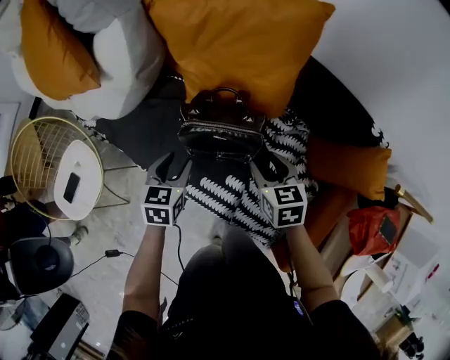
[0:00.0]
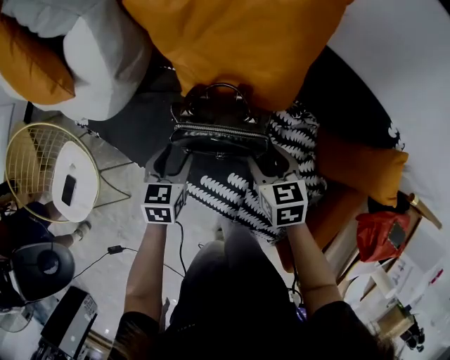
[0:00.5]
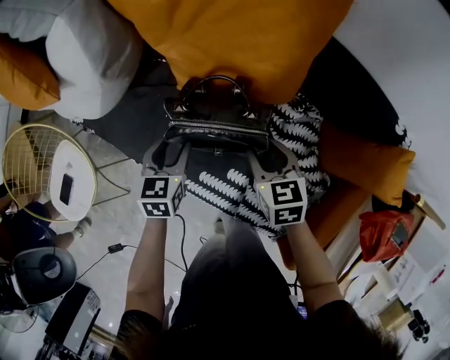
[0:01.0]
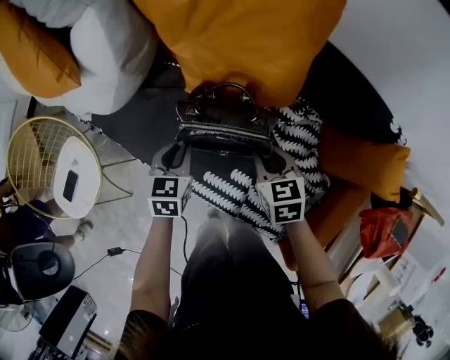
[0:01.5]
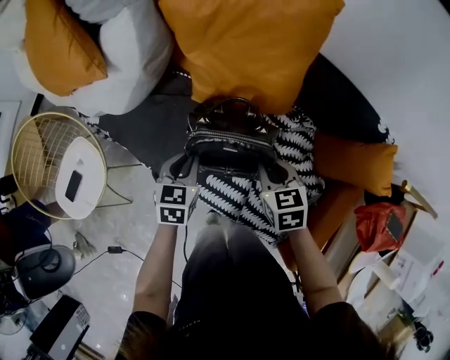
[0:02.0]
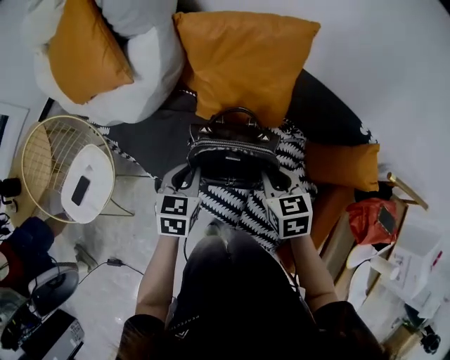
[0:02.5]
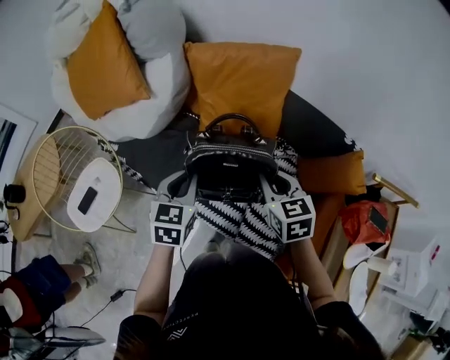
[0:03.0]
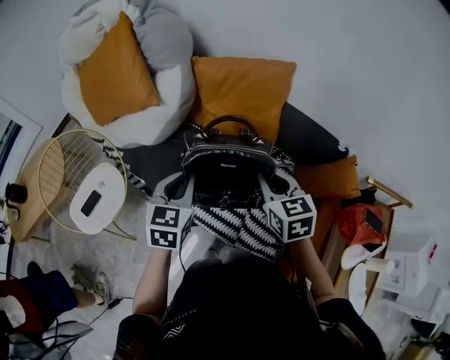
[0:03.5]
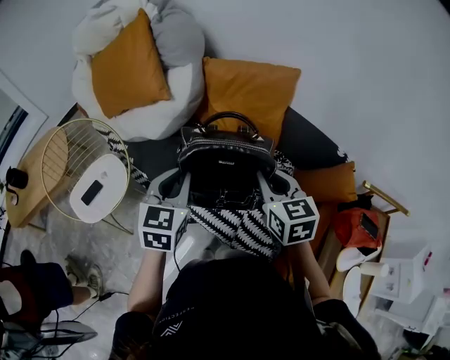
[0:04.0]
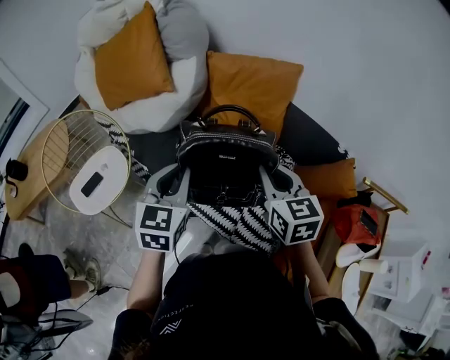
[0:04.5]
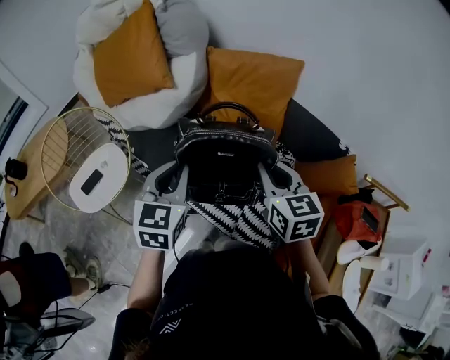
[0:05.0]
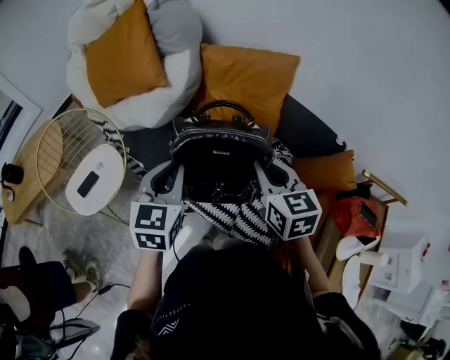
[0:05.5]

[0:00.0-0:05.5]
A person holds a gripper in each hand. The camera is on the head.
0:00.0 to 0:02.0: The right gripper closes. Meanwhile the left gripper closes up.
0:02.0 to 0:03.5: Both grippers move upward, about 20 cm.
0:03.5 to 0:05.5: The grippers both shift upward by roughly 5 cm.

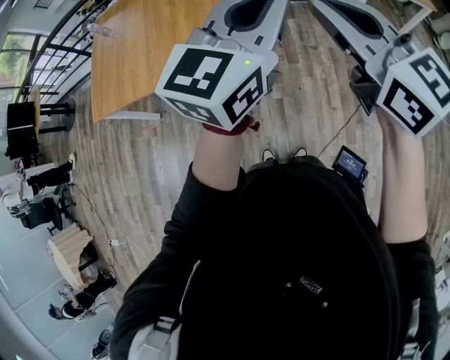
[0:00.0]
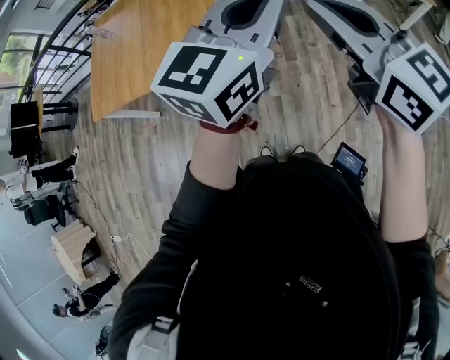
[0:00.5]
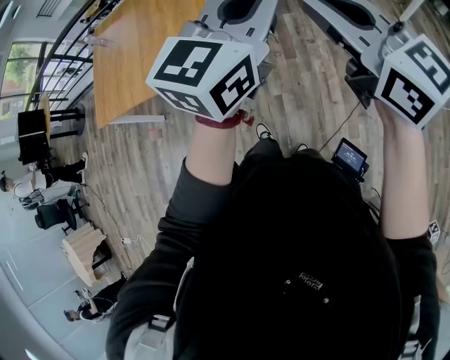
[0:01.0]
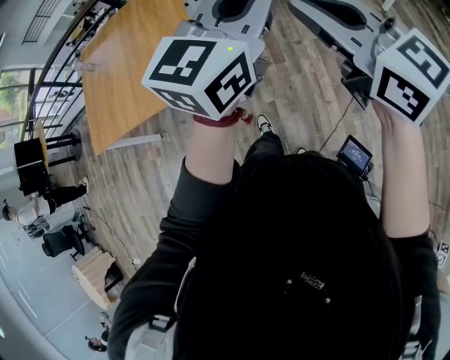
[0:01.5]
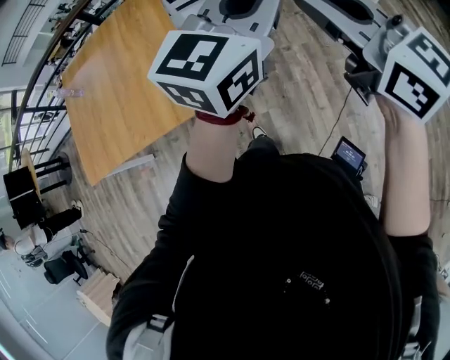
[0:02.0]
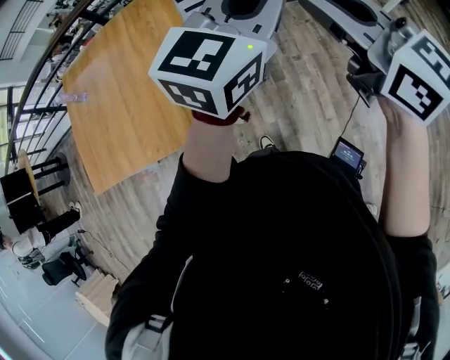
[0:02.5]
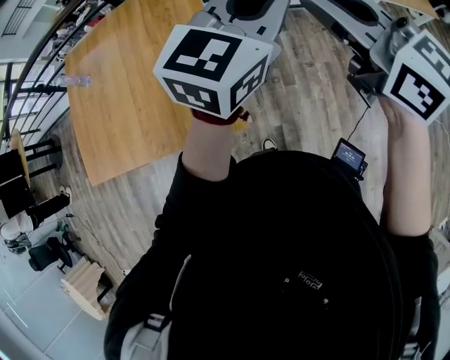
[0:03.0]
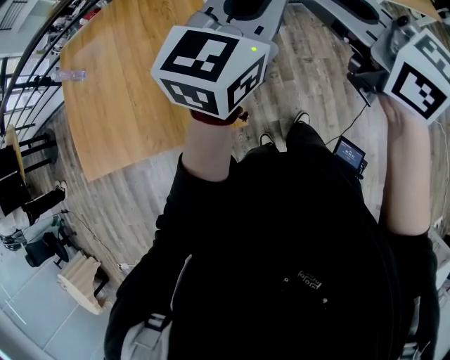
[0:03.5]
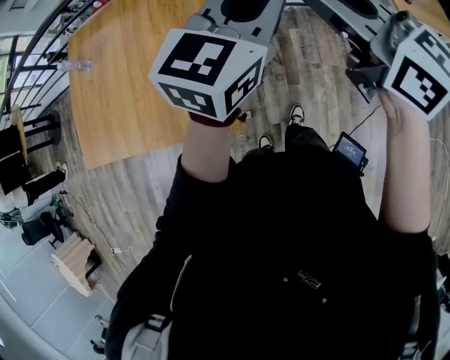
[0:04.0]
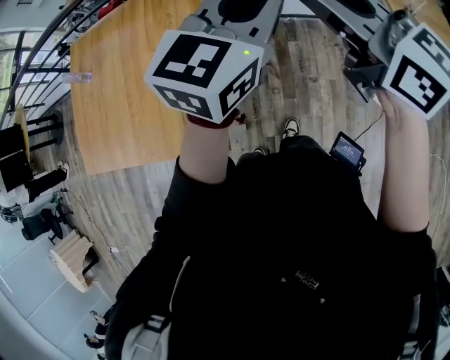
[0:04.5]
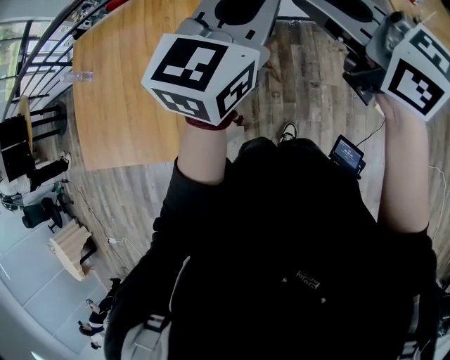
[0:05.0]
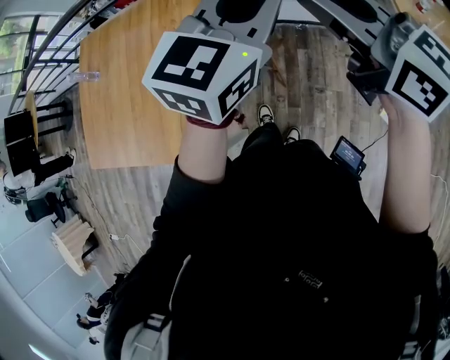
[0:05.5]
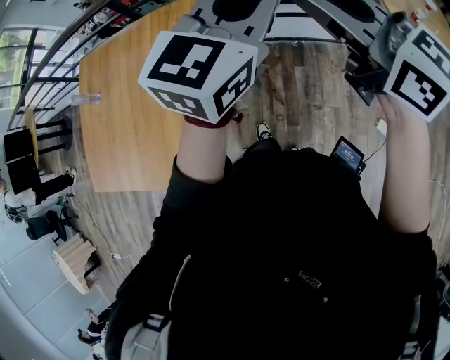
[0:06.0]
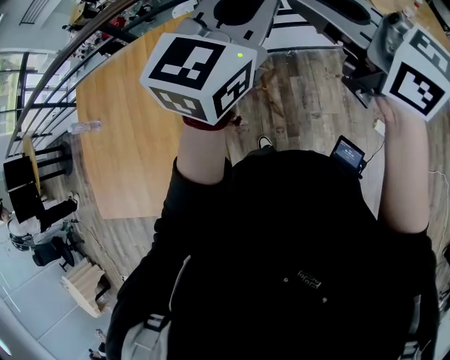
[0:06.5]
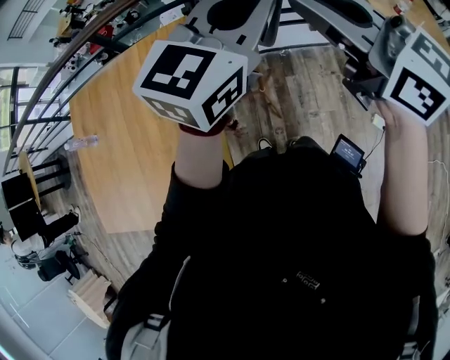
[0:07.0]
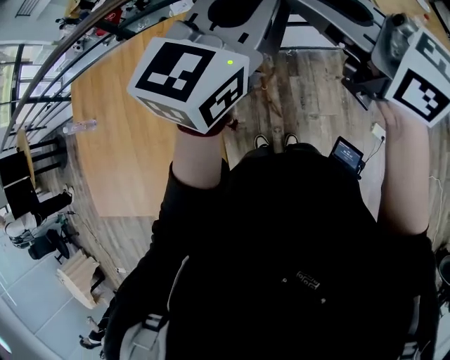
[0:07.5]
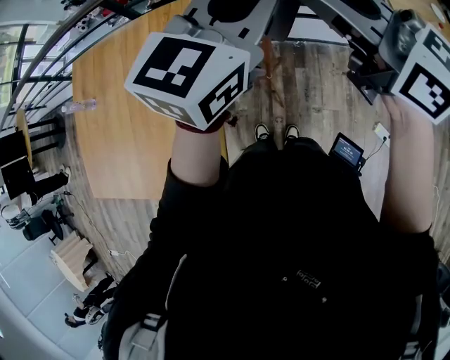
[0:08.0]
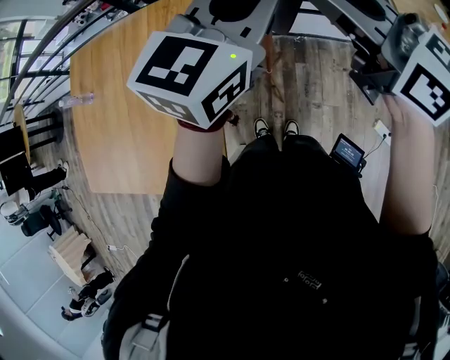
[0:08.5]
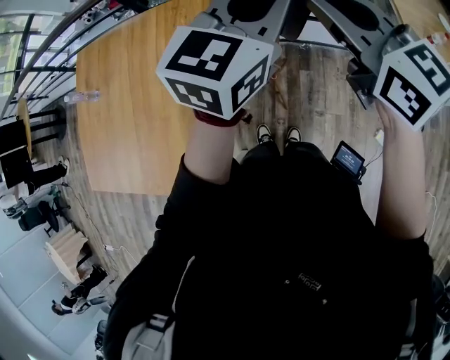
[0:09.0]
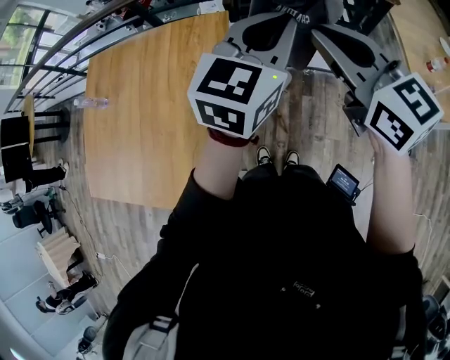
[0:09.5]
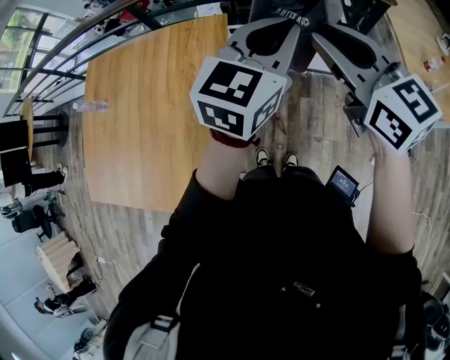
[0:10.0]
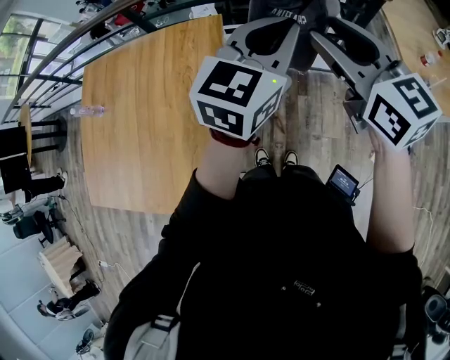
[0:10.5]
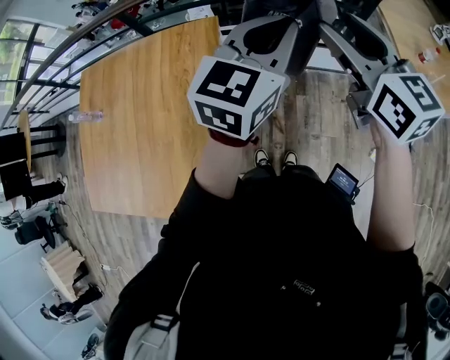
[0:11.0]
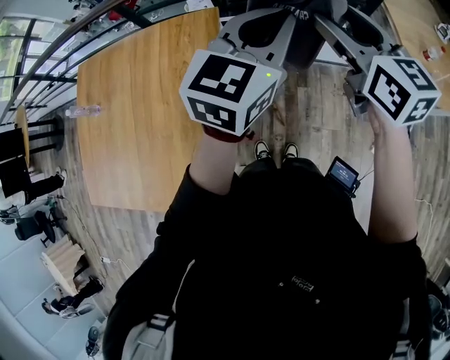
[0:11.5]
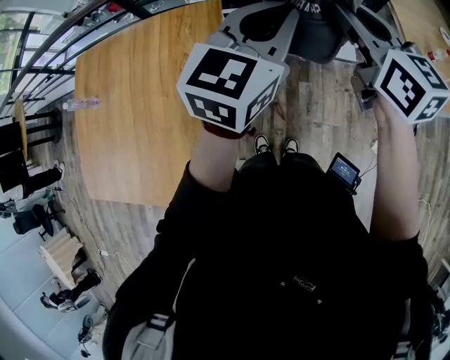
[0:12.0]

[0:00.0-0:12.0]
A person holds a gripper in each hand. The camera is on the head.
0:00.0 to 0:02.0: Both grippers travel together forward and to the right, some 15 cm.
0:02.0 to 0:04.0: The grippers both shift forward and to the left by about 25 cm.
0:04.0 to 0:06.0: The two grippers go roughly 20 cm forward and to the right.
0:06.0 to 0:08.0: Both grippers move forward, roughly 5 cm.
0:08.0 to 0:10.0: The grippers make only small movements.
0:10.0 to 0:12.0: The right gripper is displaced forward by roughly 5 cm, and opens, then closes once more.

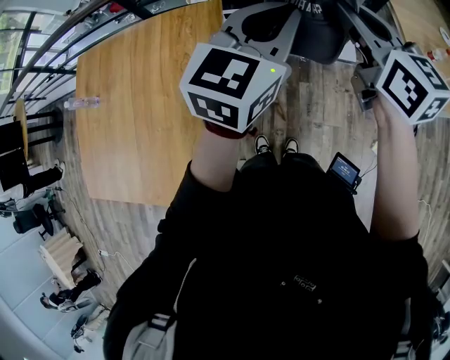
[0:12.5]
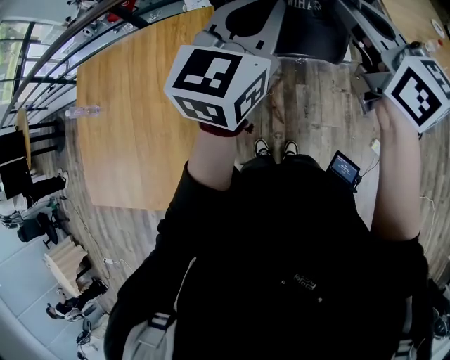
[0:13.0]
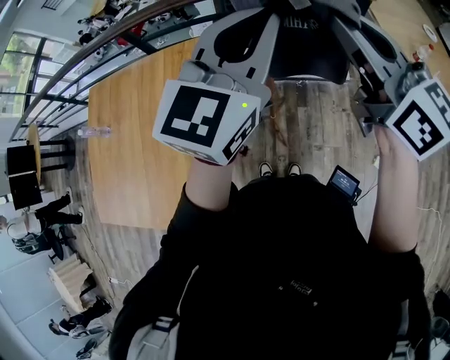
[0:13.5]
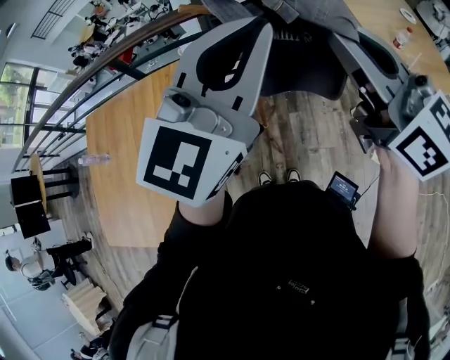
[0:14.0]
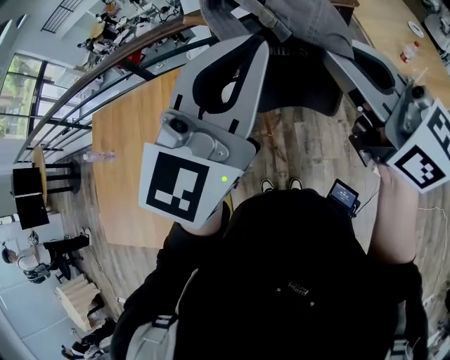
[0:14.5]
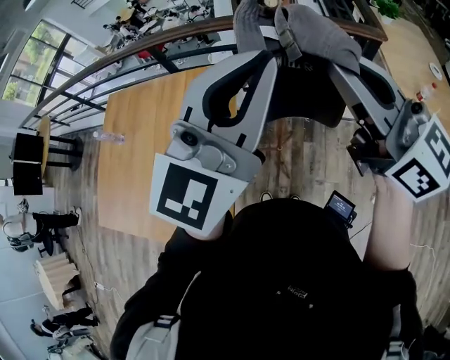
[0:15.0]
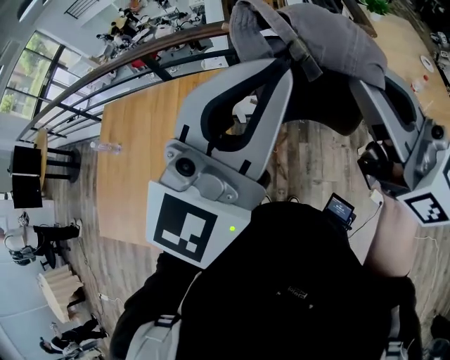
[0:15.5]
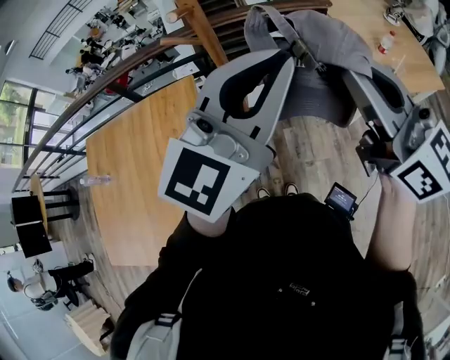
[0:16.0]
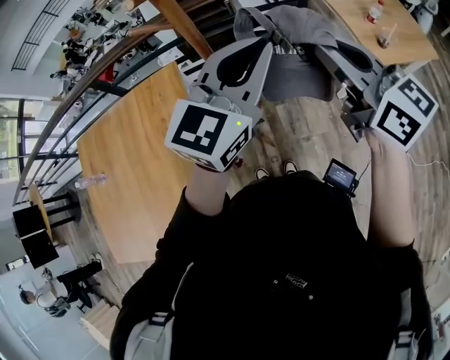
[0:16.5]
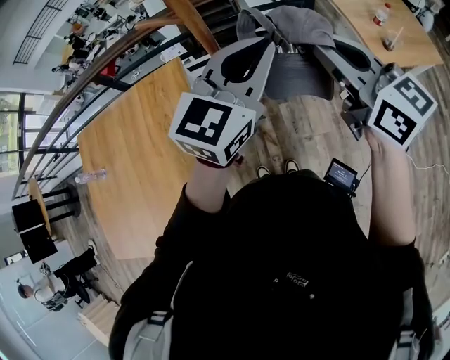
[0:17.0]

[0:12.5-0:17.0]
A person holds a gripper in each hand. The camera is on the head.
0:12.5 to 0:14.5: Both grippers move upward and backward, roughly 15 cm. The left gripper rotates approximately 20 degrees.
0:14.5 to 0:17.0: The grippers both shift downward and to the right by some 10 cm.

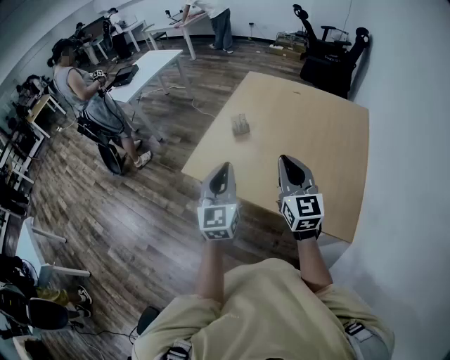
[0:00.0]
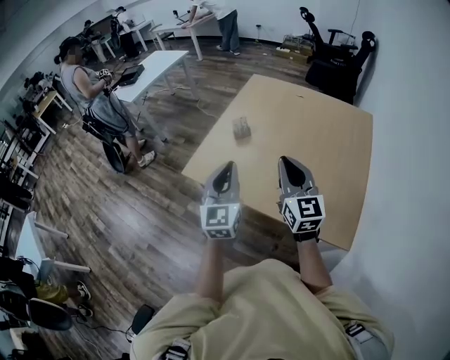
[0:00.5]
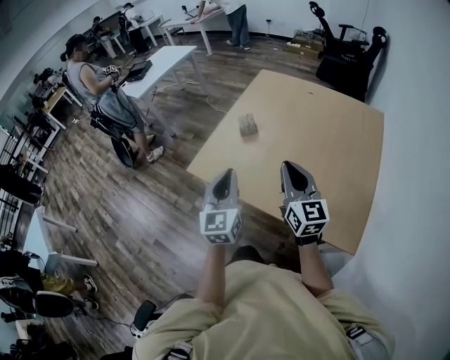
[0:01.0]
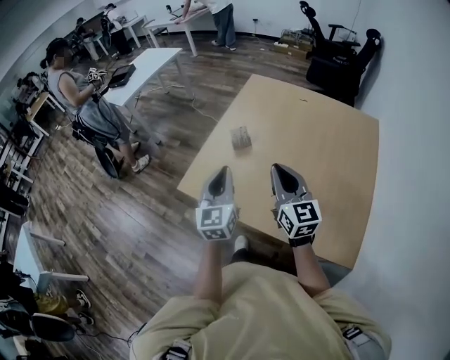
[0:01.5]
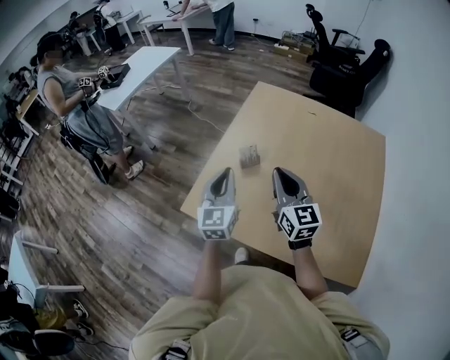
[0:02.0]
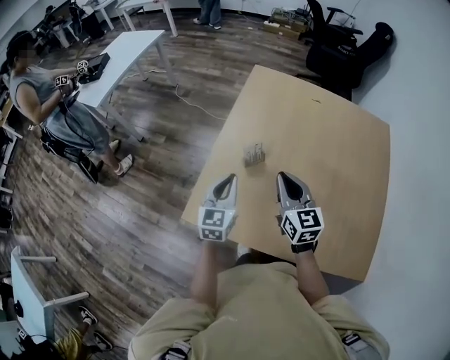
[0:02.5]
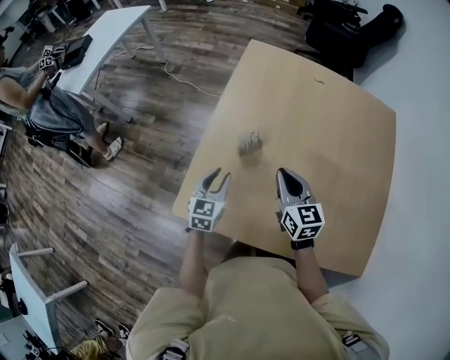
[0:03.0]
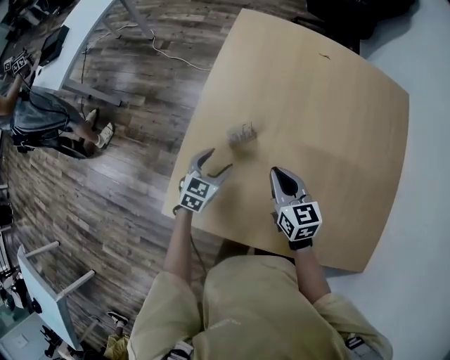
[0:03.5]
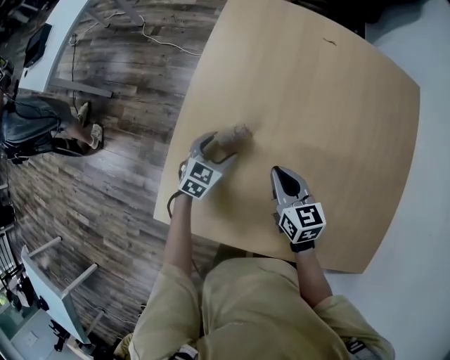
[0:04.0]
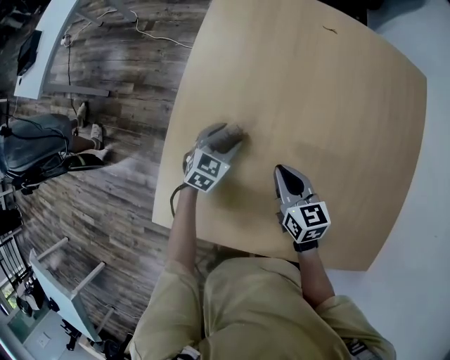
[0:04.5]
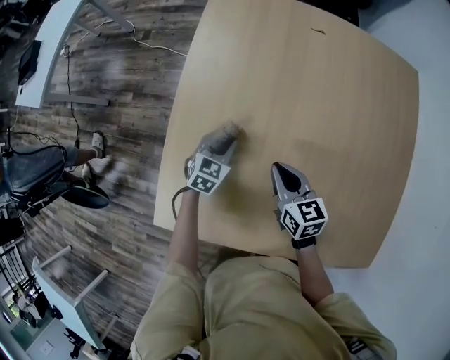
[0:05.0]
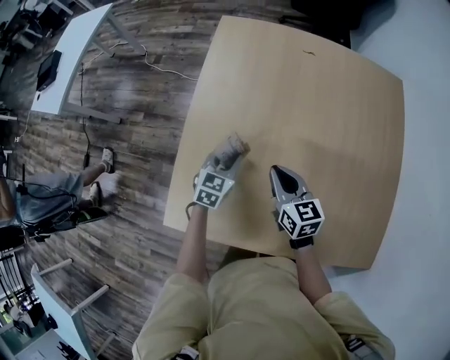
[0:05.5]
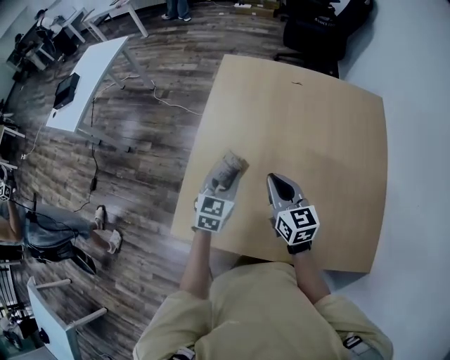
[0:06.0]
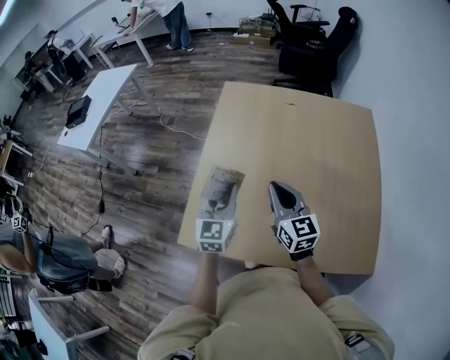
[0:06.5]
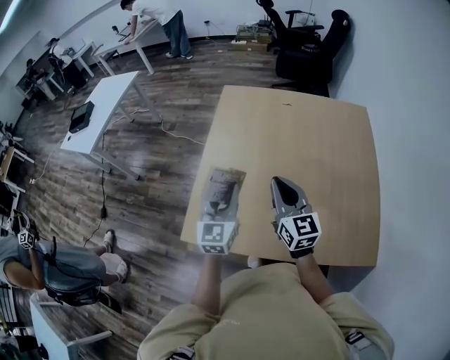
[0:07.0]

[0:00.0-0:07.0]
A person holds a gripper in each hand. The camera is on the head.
0:00.0 to 0:02.0: Both grippers move forward, approximately 25 cm.
0:02.0 to 0:03.5: The grippers both shift downward and forward by roughly 30 cm. The left gripper points its fingers approximately 30 degrees further downward, and opens, while the right gripper turns by about 30 degrees.
0:03.5 to 0:05.0: The right gripper shifts roughly 5 cm downward. The left gripper moves forward, to the right and downward, about 15 cm, and closes.
0:05.0 to 0:07.0: The two grippers go roughly 35 cm upward and backward. The right gripper swivels about 30 degrees. Meanwhile the left gripper tips its fingers upward by about 40 degrees.
